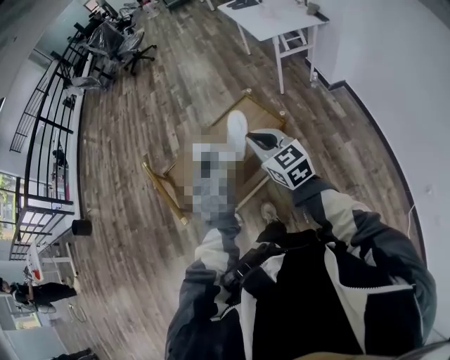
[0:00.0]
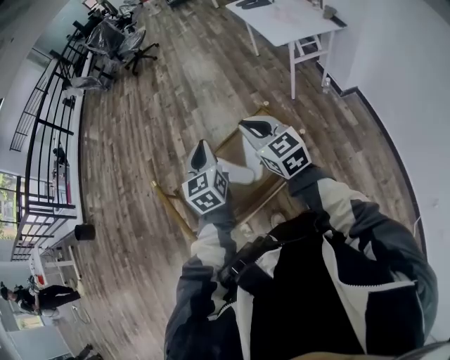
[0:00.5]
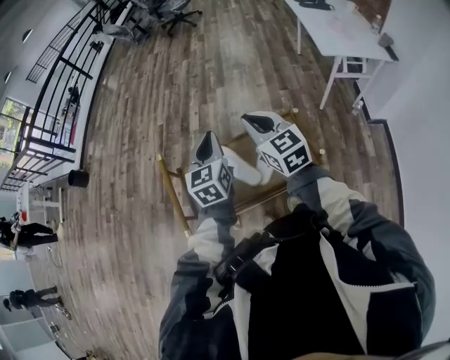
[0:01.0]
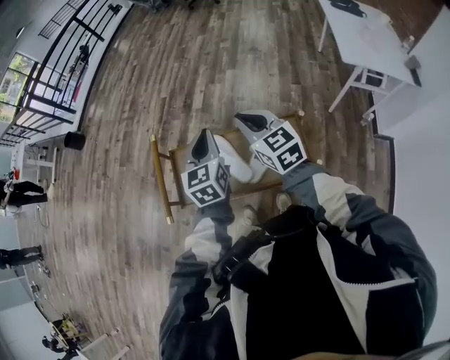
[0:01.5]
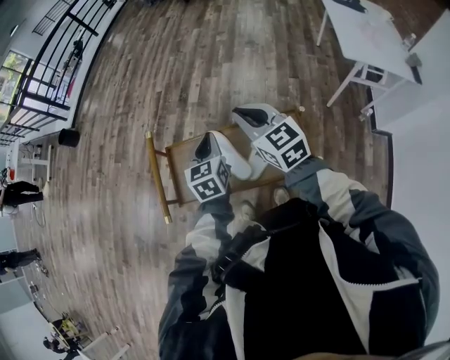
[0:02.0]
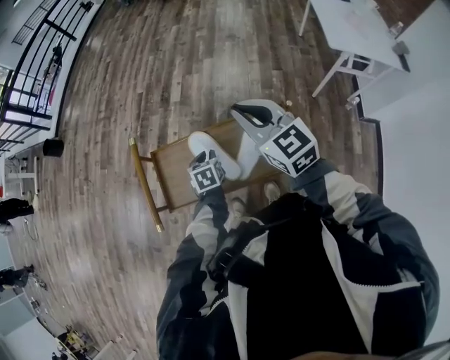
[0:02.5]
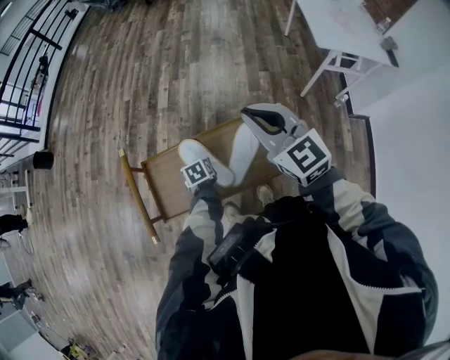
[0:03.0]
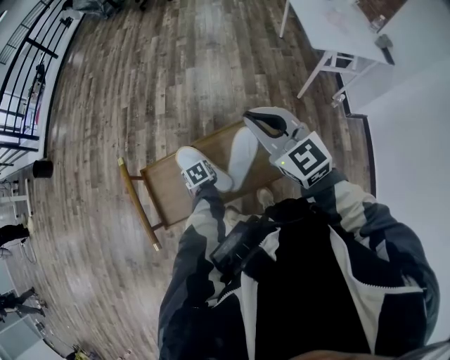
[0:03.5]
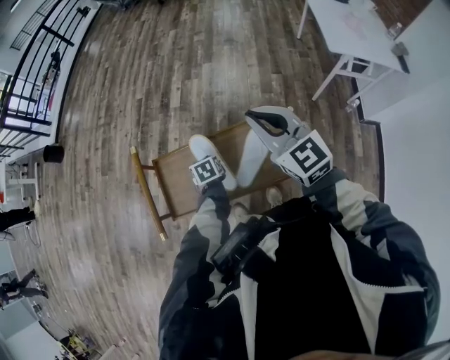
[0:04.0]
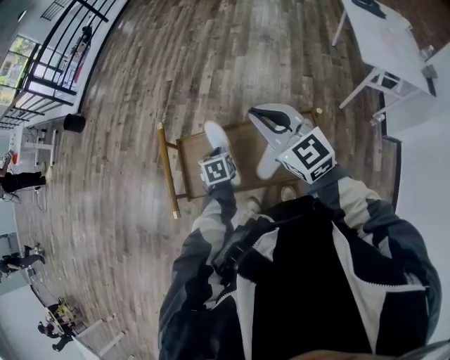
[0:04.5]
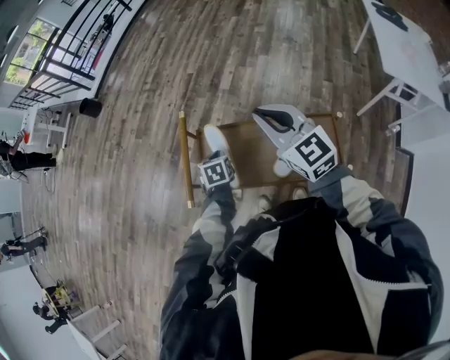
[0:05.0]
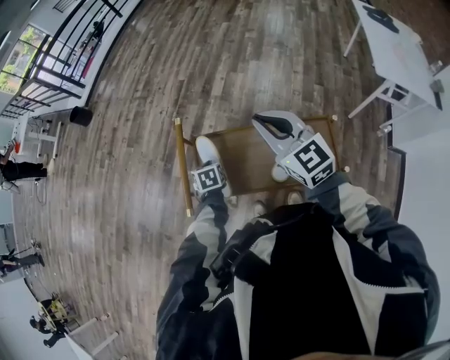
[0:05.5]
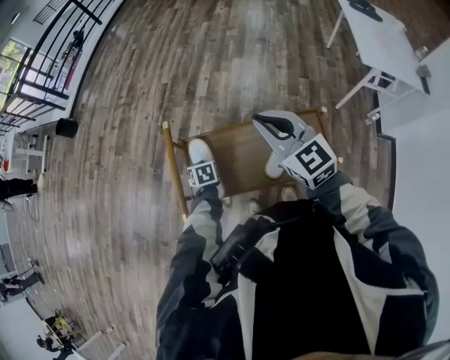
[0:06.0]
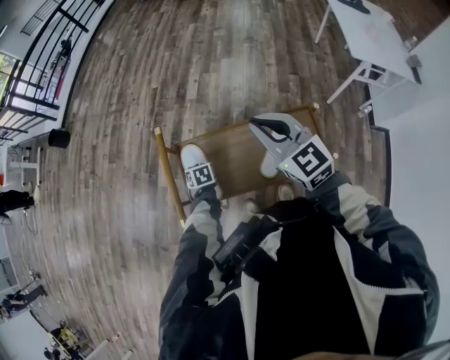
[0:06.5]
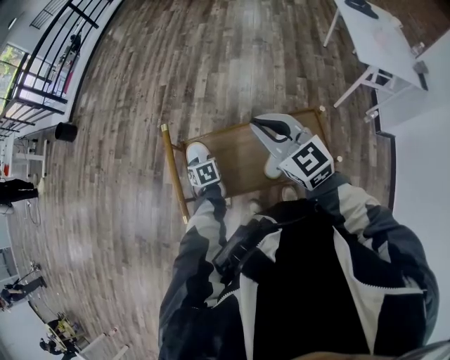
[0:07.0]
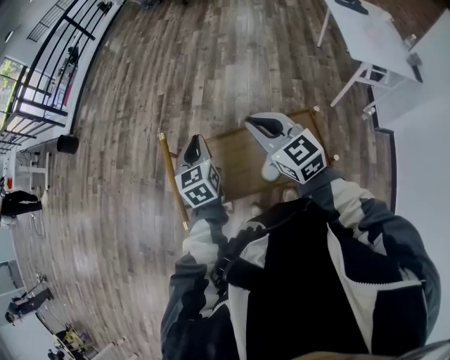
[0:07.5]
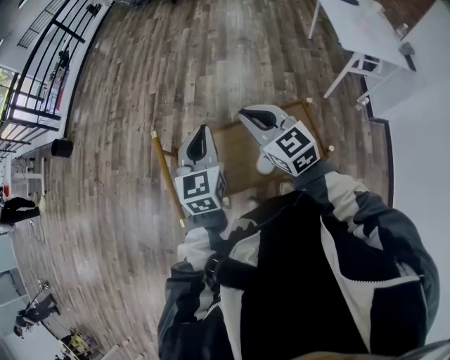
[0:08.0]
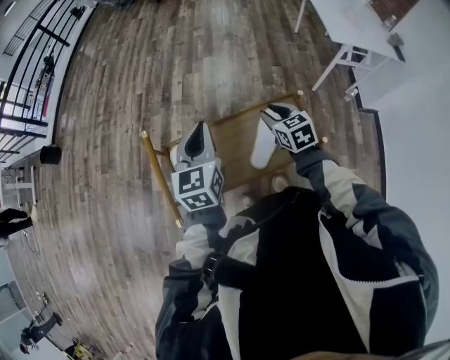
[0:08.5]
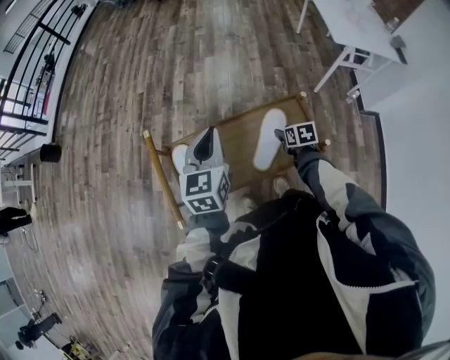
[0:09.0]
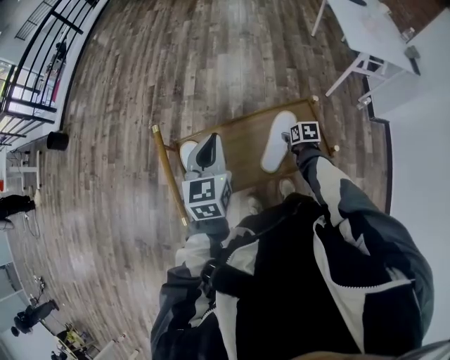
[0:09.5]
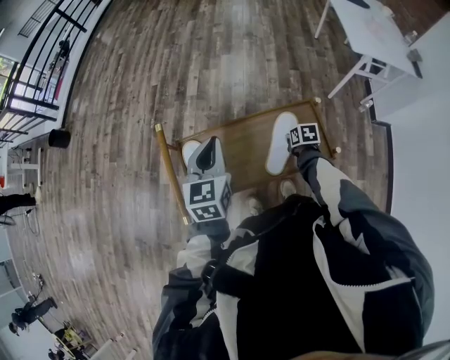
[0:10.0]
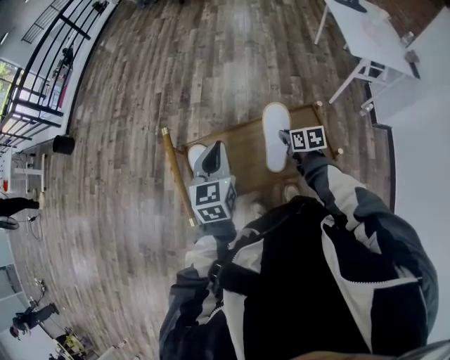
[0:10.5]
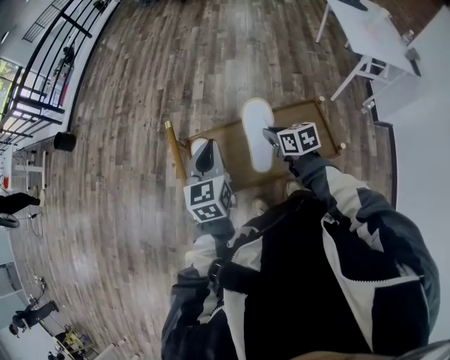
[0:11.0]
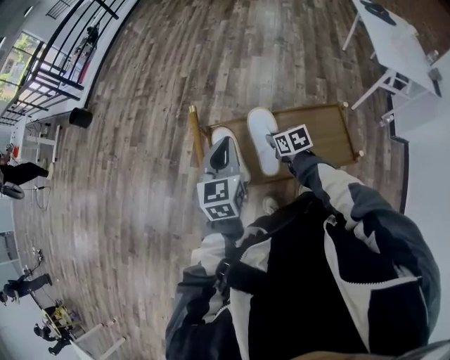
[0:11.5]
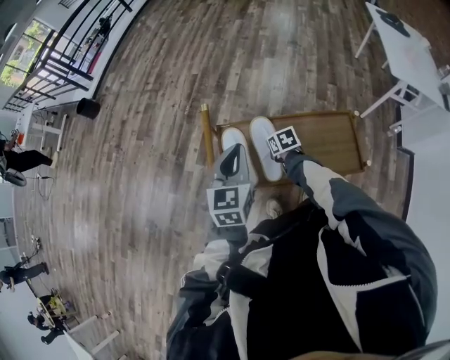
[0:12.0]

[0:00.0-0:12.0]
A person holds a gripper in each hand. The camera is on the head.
0:00.0 to 0:02.0: The right gripper changes place by roughly 25 cm, and swivels some 30 degrees; the left gripper moves some 20 cm, and rotates approximately 30 degrees.
0:02.0 to 0:04.0: The right gripper travels to the right by roughly 5 cm. The left gripper shifts some 25 cm downward, tips its fingers downward by approximately 30 degrees, and opens, then closes again.
0:04.0 to 0:06.0: The two grippers go some 15 cm to the left.
0:06.0 to 0:08.0: The left gripper goes some 35 cm upward and to the right, tips its fingers upward by roughly 50 degrees, and opens, then closes again.
0:08.0 to 0:10.0: The right gripper moves downward and to the right, about 40 cm, angles its fingers downward, by some 50 degrees, and opens, then closes again. The left gripper shifts by about 5 cm.
0:10.0 to 0:12.0: The right gripper shifts roughly 25 cm to the left, and rotates approximately 30 degrees. The left gripper travels to the left by about 10 cm.

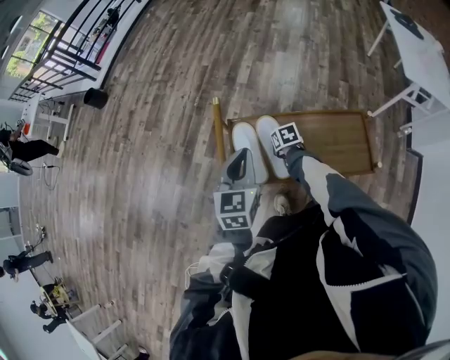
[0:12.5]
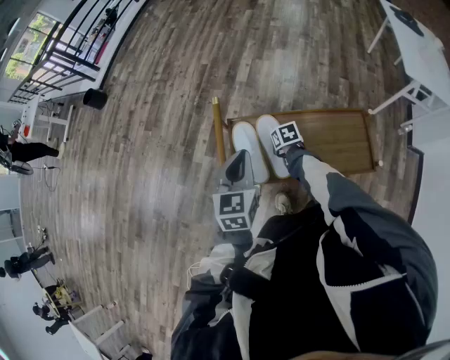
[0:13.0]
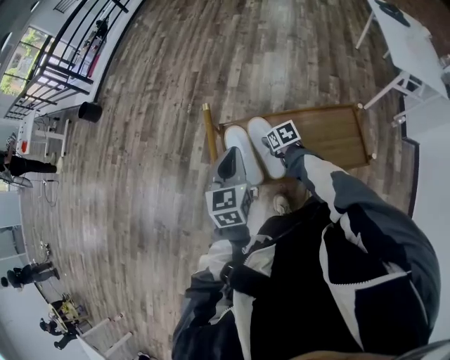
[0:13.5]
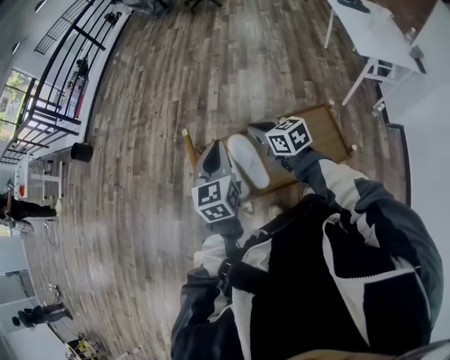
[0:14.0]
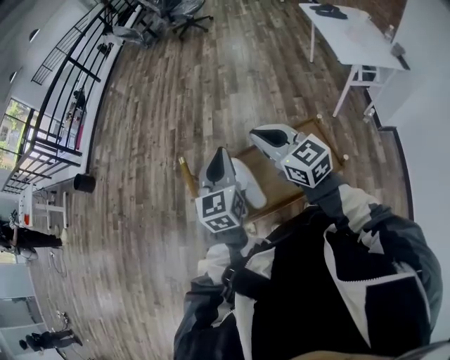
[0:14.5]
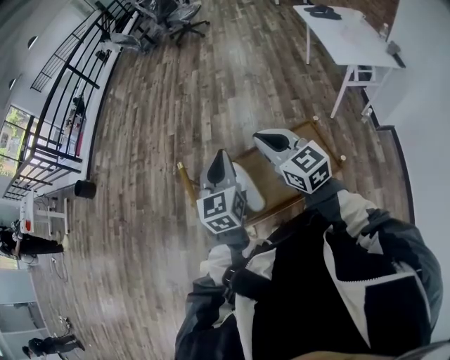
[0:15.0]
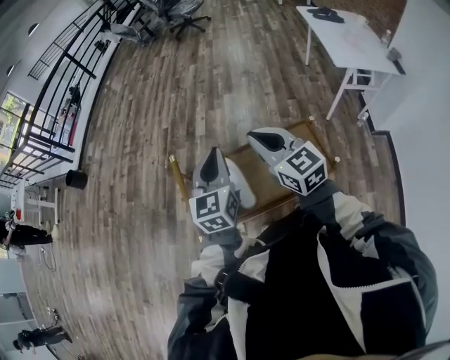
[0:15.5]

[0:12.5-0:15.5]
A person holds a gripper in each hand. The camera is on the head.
0:12.5 to 0:14.0: The right gripper is displaced upward by approximately 25 cm, points its fingers about 30 degrees further upward, and opens, then closes again. The left gripper changes place by some 10 cm.
0:14.0 to 0:15.5: The left gripper shifts about 10 cm to the right and upward. Meanwhile the right gripper moves upward, some 15 cm, and rotates roughly 30 degrees.

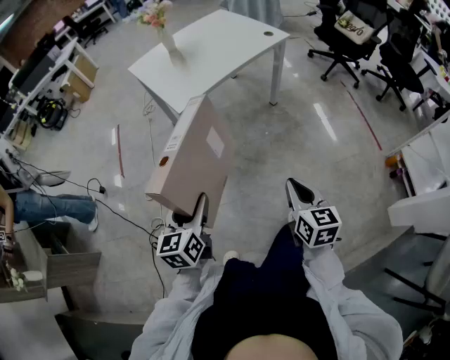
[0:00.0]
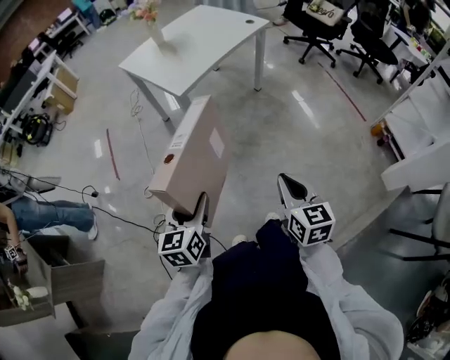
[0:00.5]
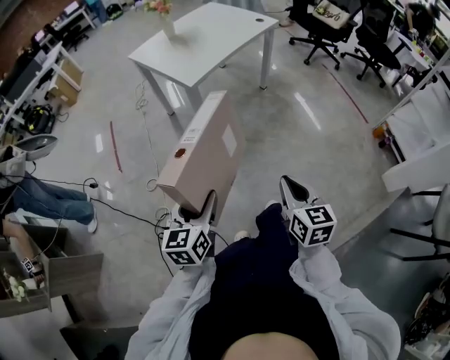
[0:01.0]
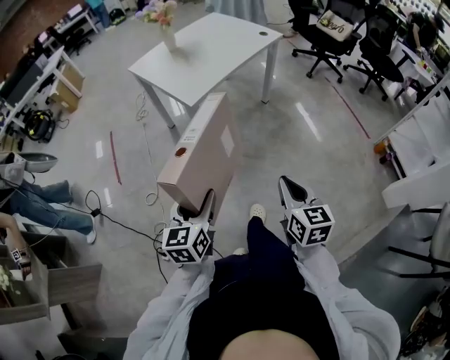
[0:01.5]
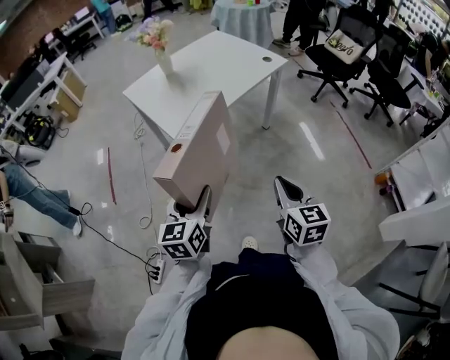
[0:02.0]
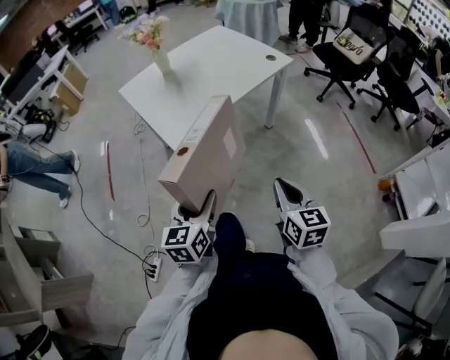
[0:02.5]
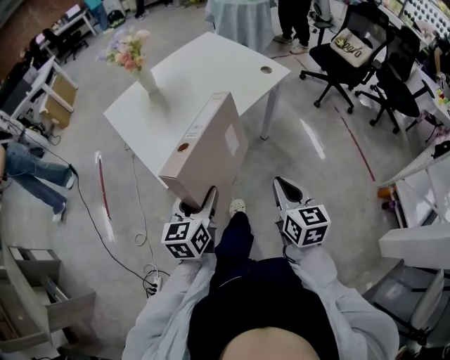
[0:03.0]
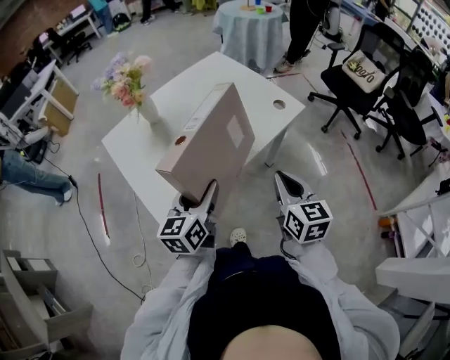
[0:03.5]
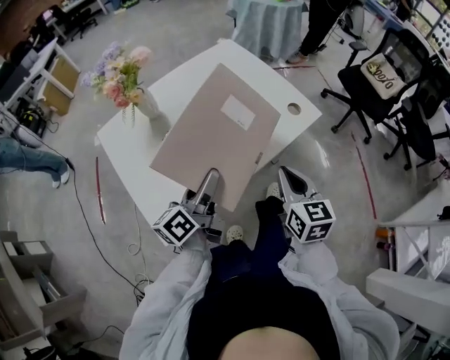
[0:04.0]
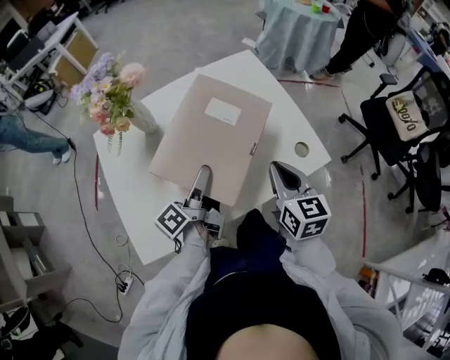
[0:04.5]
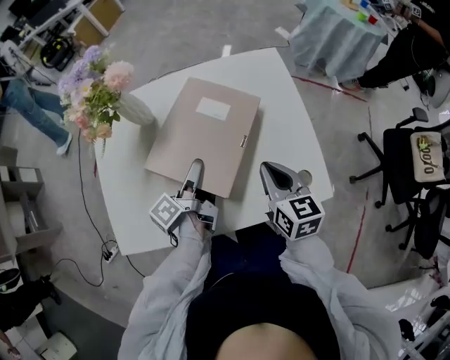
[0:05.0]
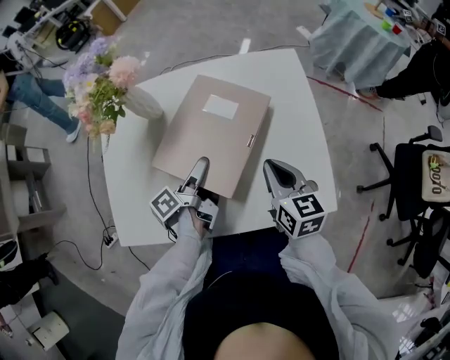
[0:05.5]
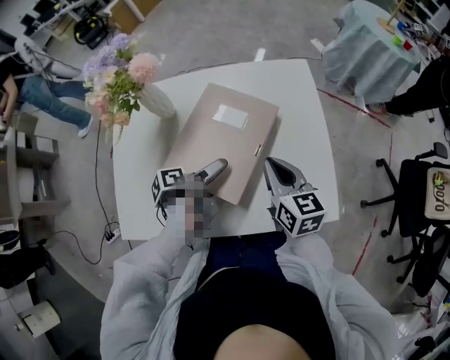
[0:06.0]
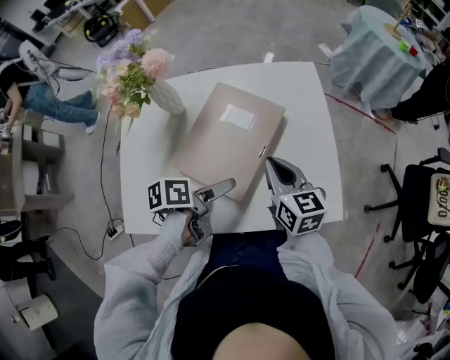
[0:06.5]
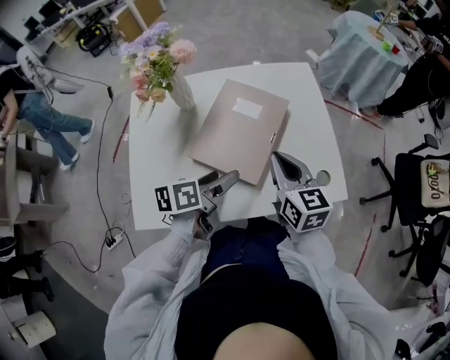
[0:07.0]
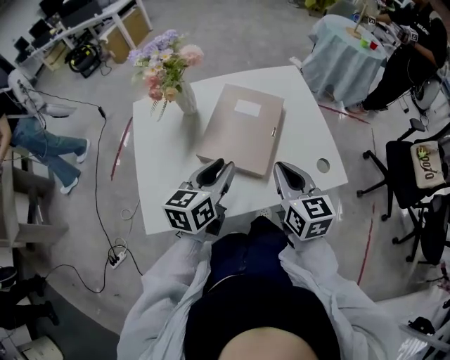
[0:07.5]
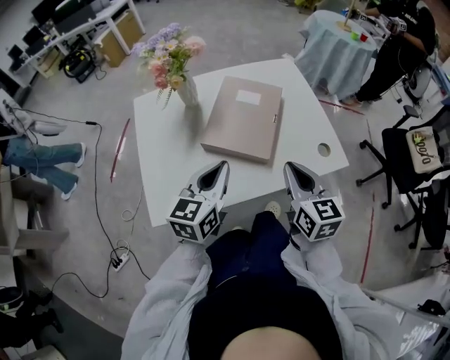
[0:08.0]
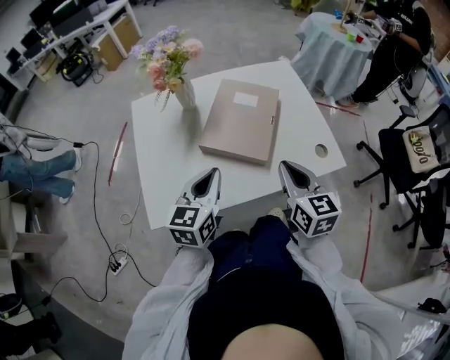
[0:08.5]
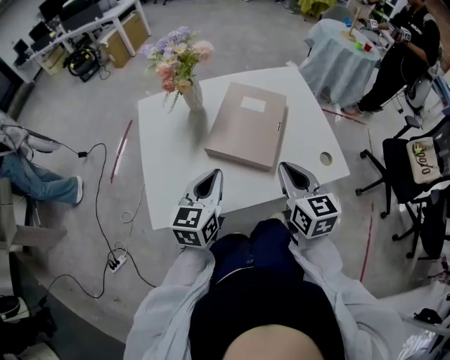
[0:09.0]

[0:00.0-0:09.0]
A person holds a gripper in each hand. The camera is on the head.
0:00.0 to 0:02.0: Both grippers move forward, approximately 15 cm.
0:02.0 to 0:04.5: The pair of grippers is taken forward, approximately 70 cm. The left gripper rolls counterclockwise, seen from behind, by approximately 70 degrees.
0:04.5 to 0:07.0: The left gripper goes forward and returns, approximately 10 cm each way, and turns by approximately 40 degrees, while the right gripper heads forward, covering roughly 10 cm, and rotates roughly 20 degrees.
0:07.0 to 0:09.0: The left gripper travels backward, to the left and upward by some 15 cm, twists roughly 40 degrees clockwise, seen from behind, and closes; the right gripper heads backward, covering approximately 10 cm.

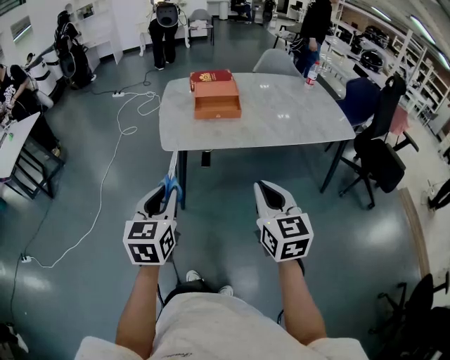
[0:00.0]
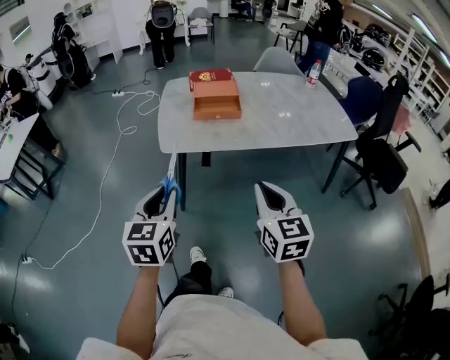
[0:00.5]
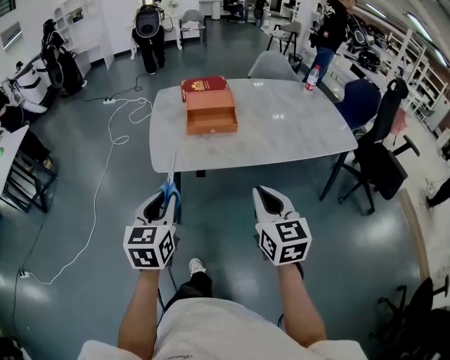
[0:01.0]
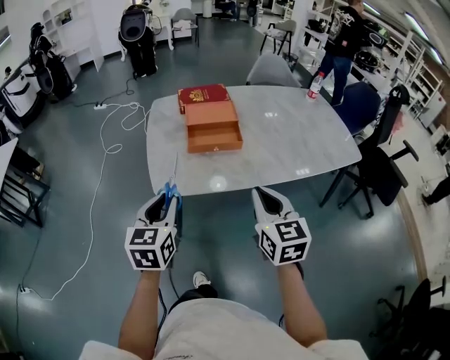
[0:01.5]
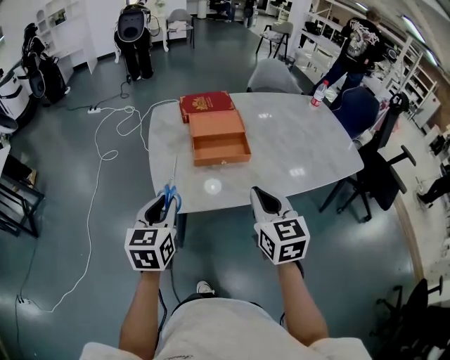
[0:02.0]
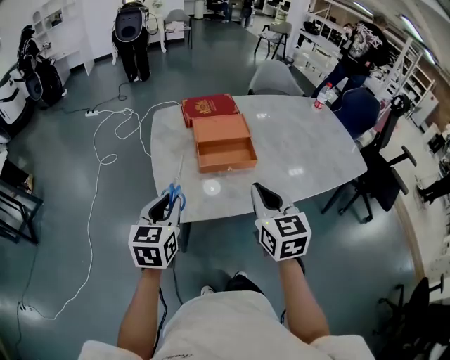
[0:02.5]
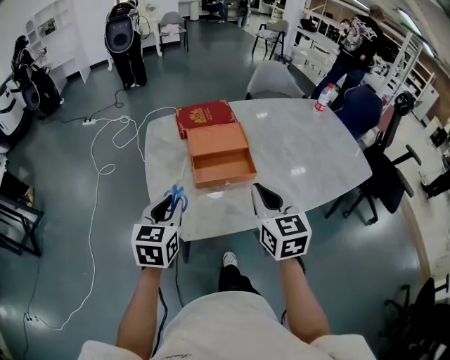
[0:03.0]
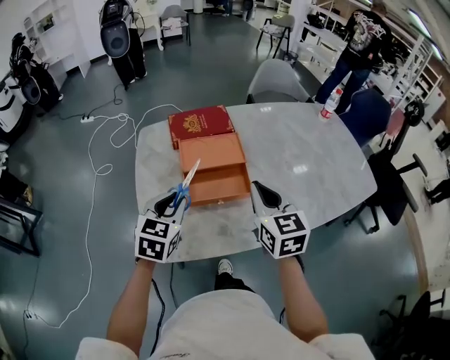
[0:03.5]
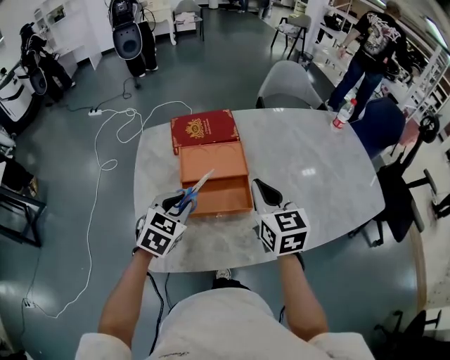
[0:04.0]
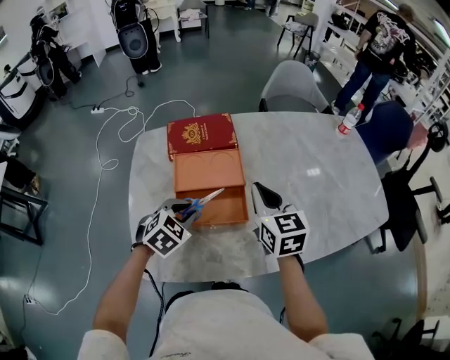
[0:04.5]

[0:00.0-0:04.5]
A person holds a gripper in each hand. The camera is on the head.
0:00.0 to 0:02.0: The two grippers go approximately 30 cm forward.
0:02.0 to 0:04.5: The left gripper is displaced forward, downward and to the right by about 35 cm, and changes its angle by some 50 degrees; the right gripper goes approximately 35 cm forward.
